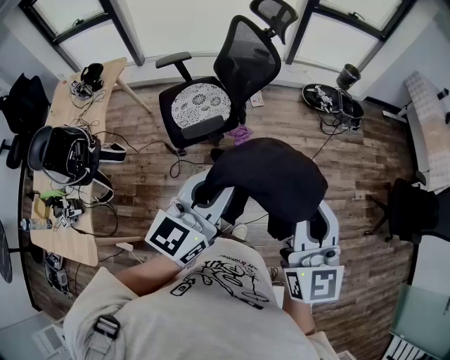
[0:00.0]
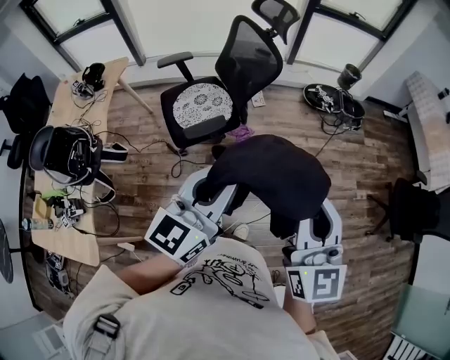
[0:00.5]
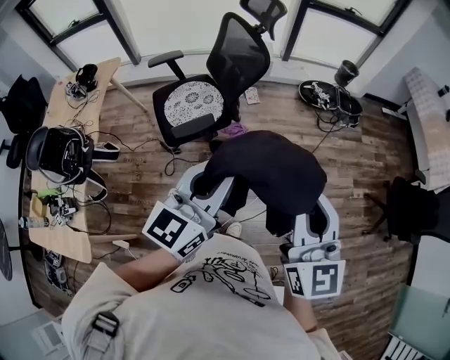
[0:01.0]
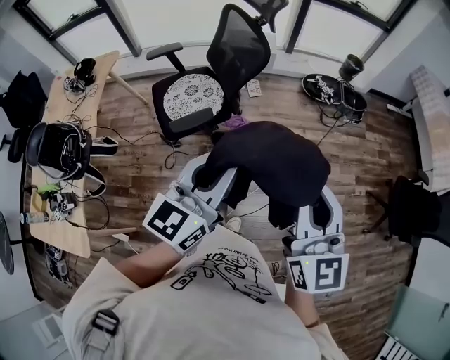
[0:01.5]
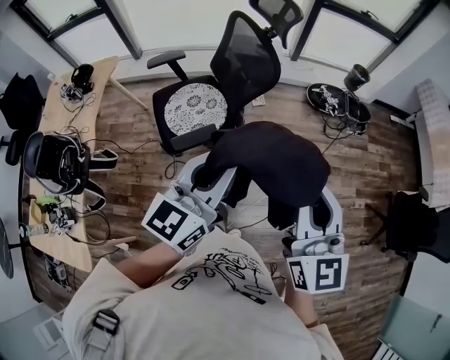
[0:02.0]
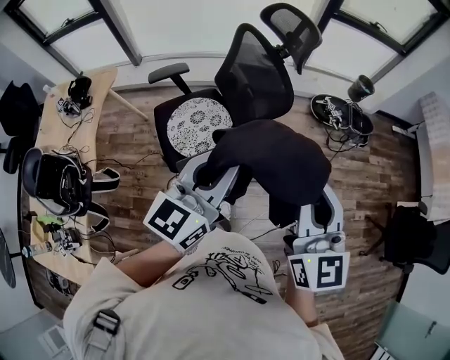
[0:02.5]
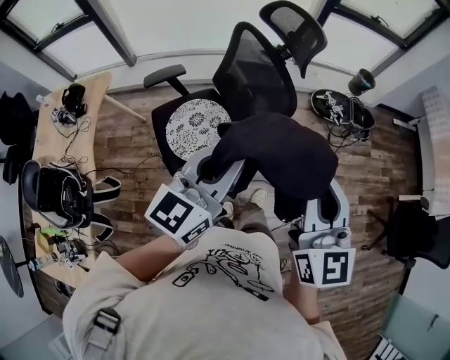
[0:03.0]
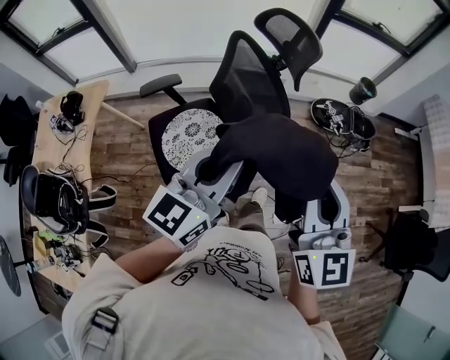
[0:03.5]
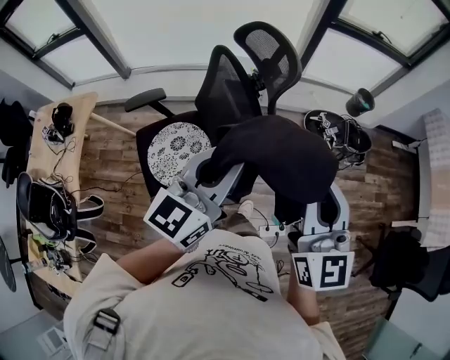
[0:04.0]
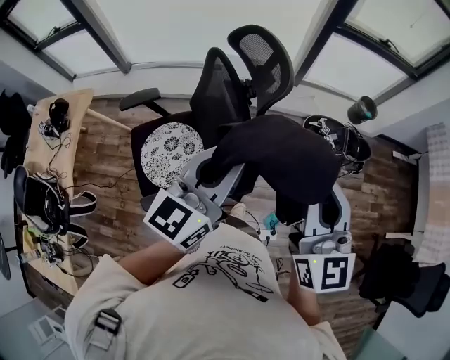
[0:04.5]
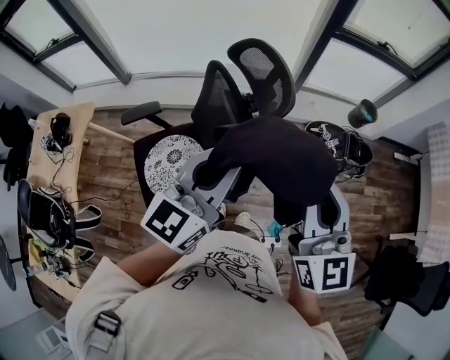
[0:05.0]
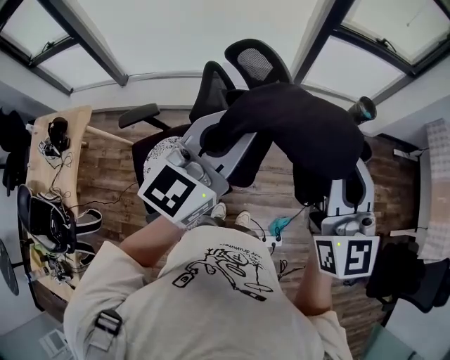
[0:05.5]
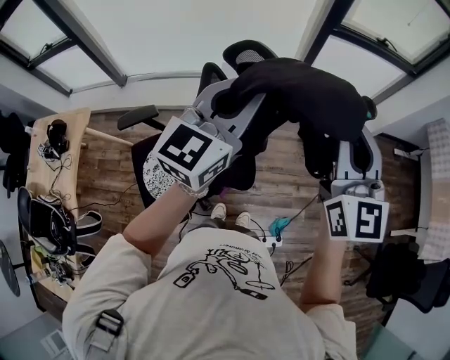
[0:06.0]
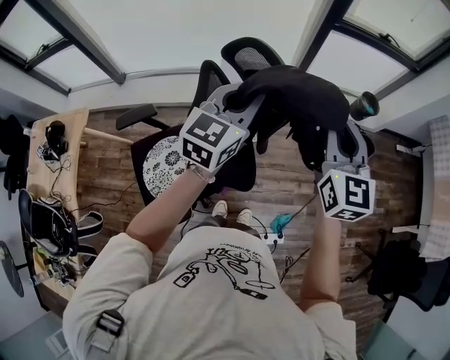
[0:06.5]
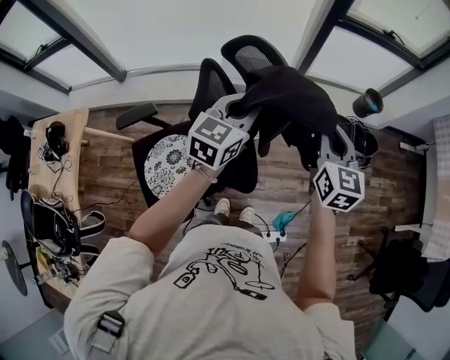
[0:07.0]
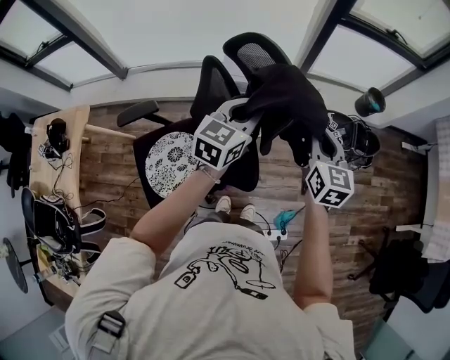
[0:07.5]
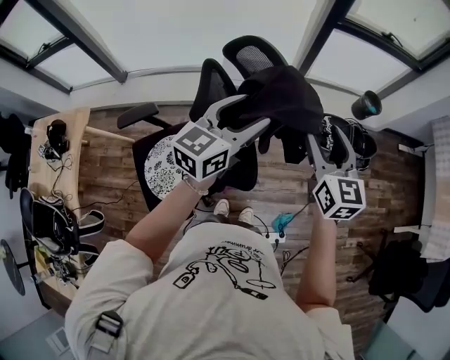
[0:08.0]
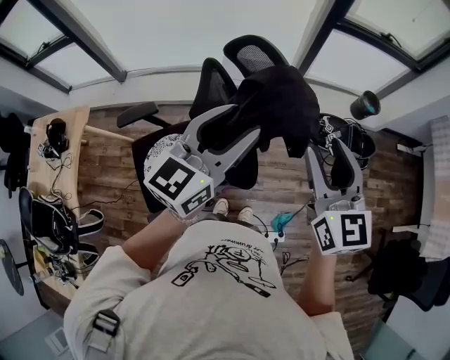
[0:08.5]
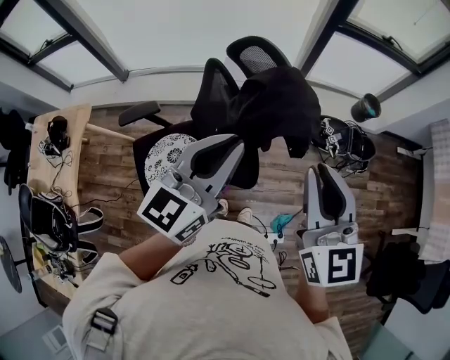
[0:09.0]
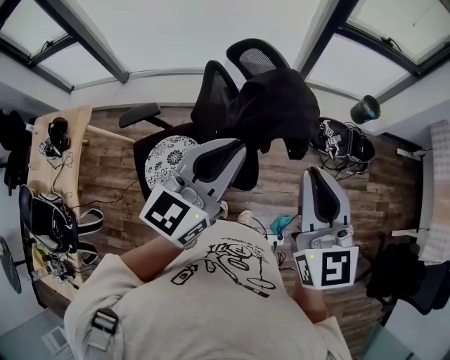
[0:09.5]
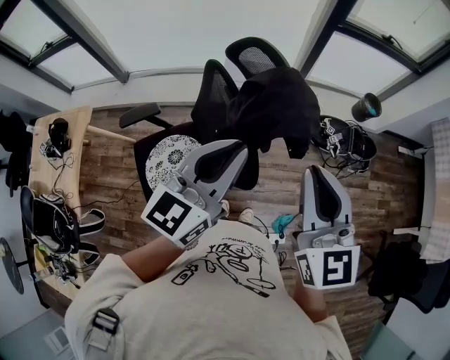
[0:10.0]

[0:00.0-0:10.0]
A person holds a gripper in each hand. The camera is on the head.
0:00.0 to 0:02.0: The two grippers go some 15 cm forward.
0:02.0 to 0:04.0: Both grippers travel together forward, about 35 cm.
0:04.0 to 0:06.0: Both grippers travel together forward, some 20 cm.
0:06.0 to 0:08.0: Both grippers move downward, approximately 15 cm. The left gripper opens its fingers, while the right gripper swivels approximately 20 degrees, and opens.
0:08.0 to 0:10.0: Both grippers move backward and upward, roughly 15 cm. The left gripper closes up. The right gripper closes up.

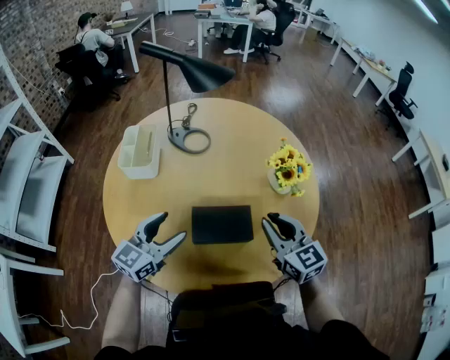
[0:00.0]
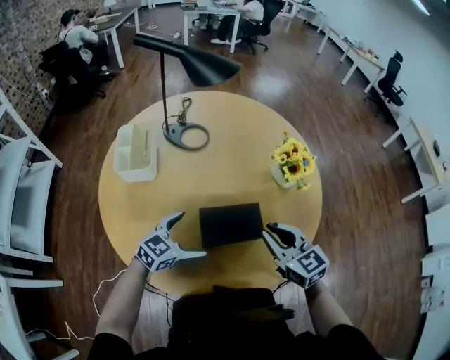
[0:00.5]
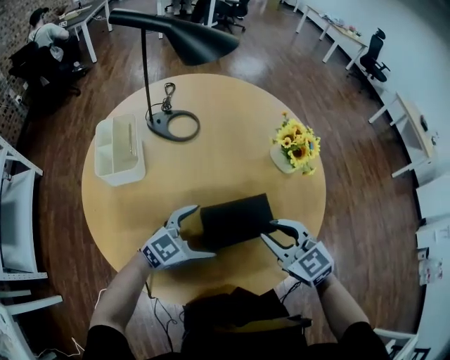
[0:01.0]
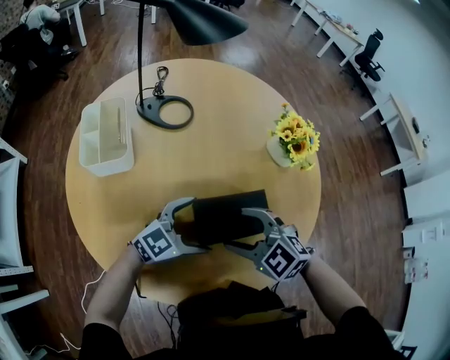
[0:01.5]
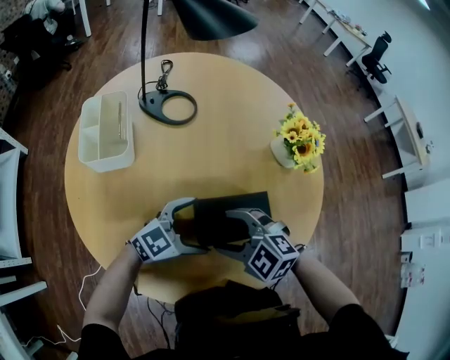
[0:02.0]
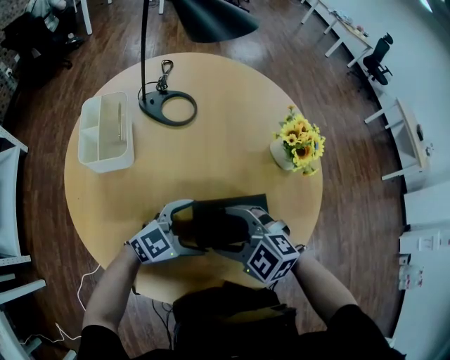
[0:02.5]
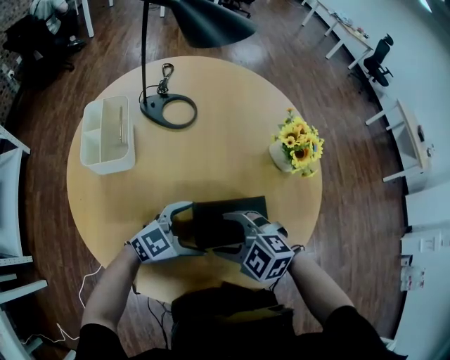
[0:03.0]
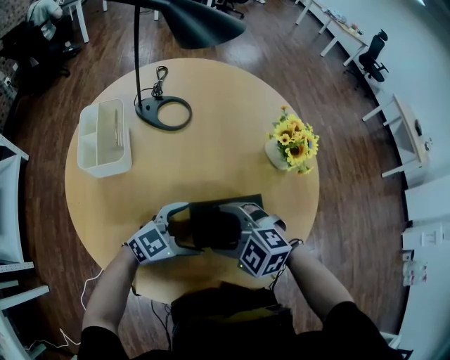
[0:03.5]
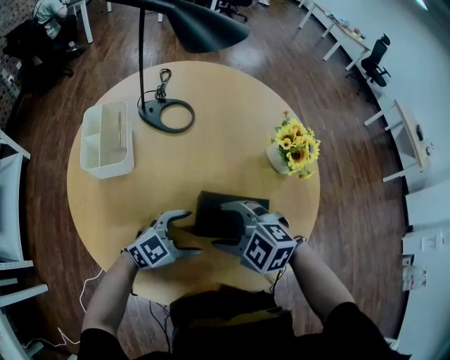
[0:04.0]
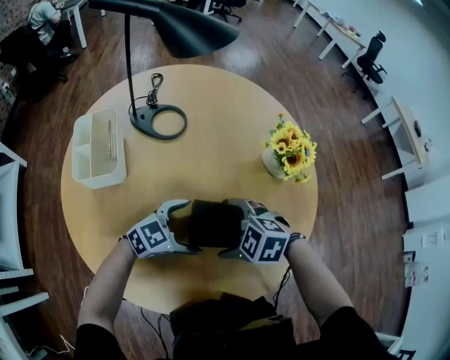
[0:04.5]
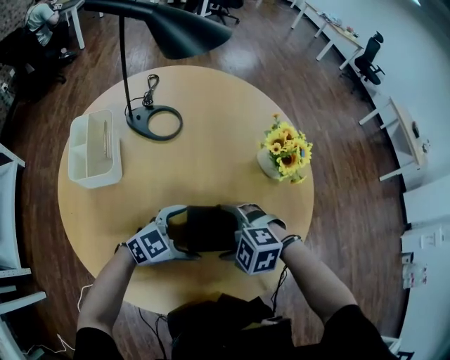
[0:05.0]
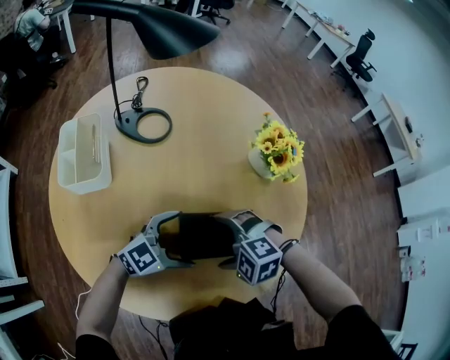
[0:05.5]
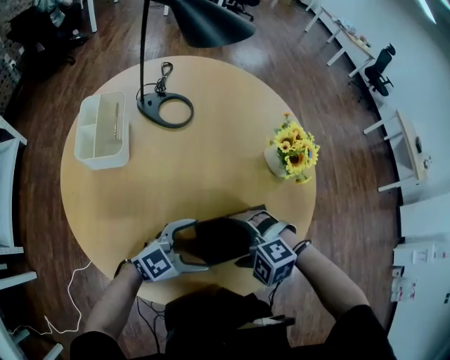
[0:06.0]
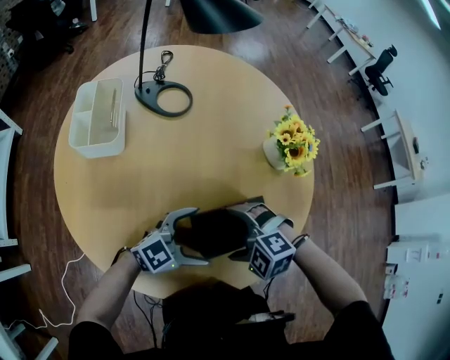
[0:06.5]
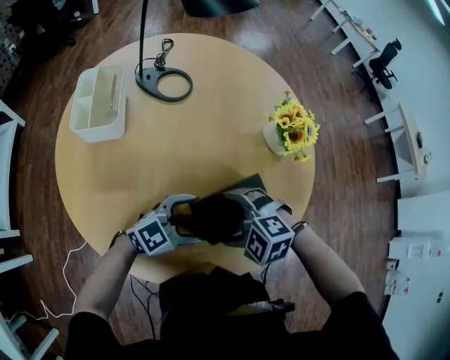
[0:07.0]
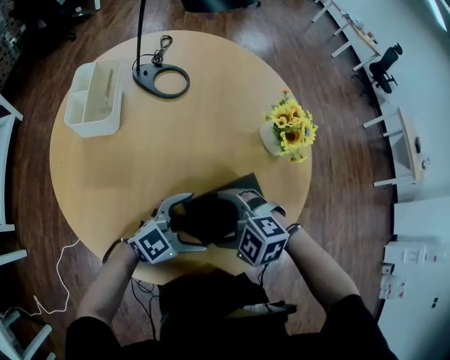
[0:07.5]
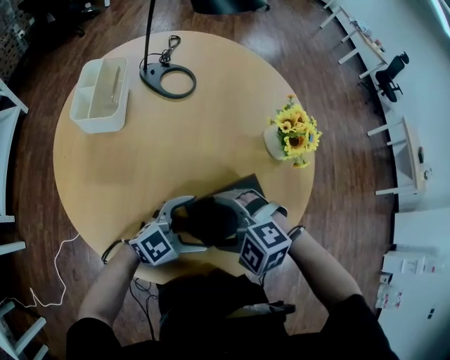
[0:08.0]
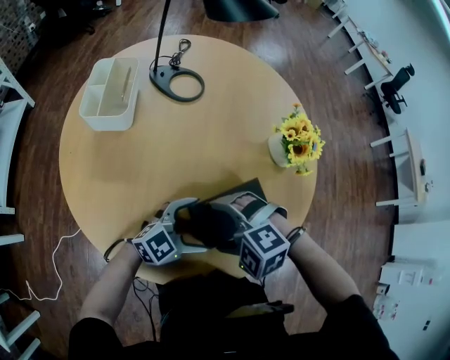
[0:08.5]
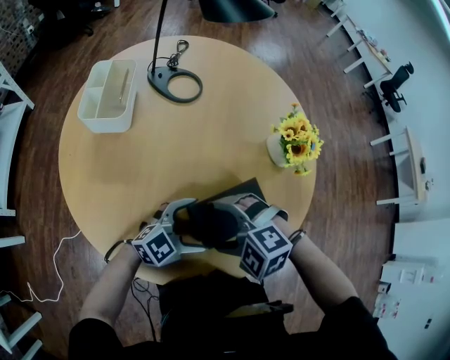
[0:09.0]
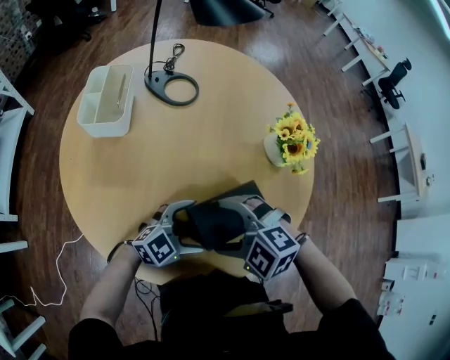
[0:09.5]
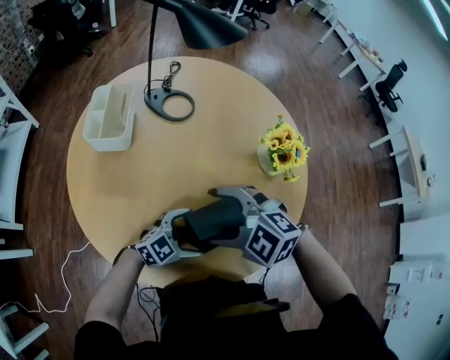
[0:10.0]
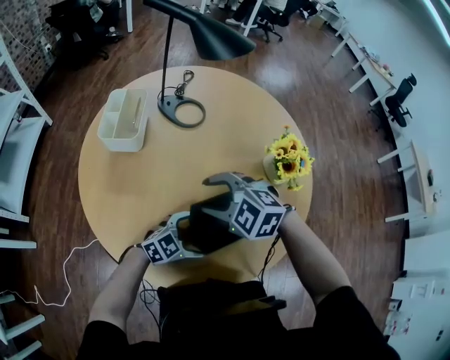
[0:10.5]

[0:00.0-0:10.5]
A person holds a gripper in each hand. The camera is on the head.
0:00.0 to 0:02.0: The left gripper travels downward by about 15 cm, changes its angle by some 40 degrees, and opens up. Meanwhile the right gripper shifts by some 20 cm, tips its fingers downward by some 30 degrees, and opens up.
0:04.0 to 0:06.5: The left gripper ends up approximately 5 cm from where it was; the right gripper moves roughly 10 cm, rotates roughly 20 degrees, and opens.
0:06.5 to 0:08.5: The grippers make only small movements.
0:08.5 to 0:10.5: The right gripper changes place by about 15 cm, rotates about 20 degrees, and closes.

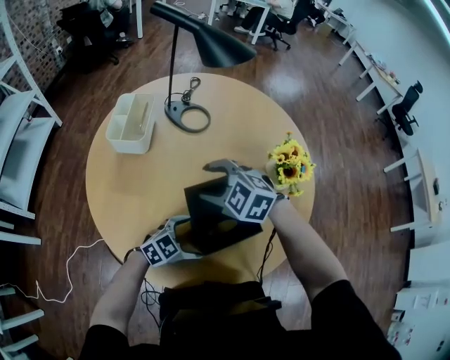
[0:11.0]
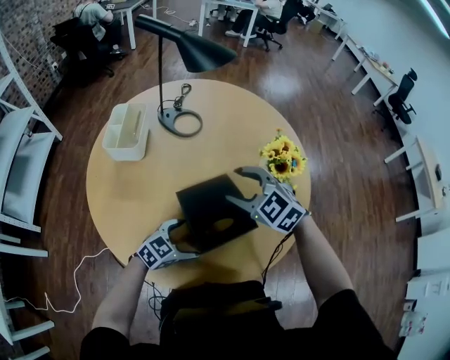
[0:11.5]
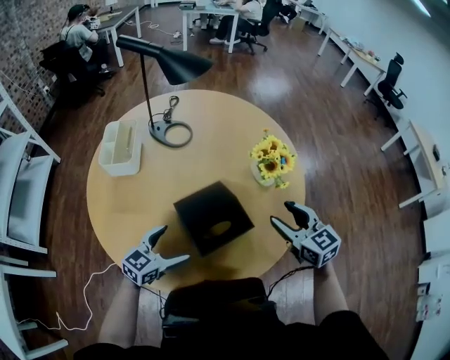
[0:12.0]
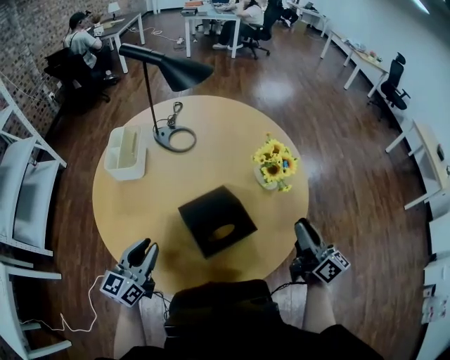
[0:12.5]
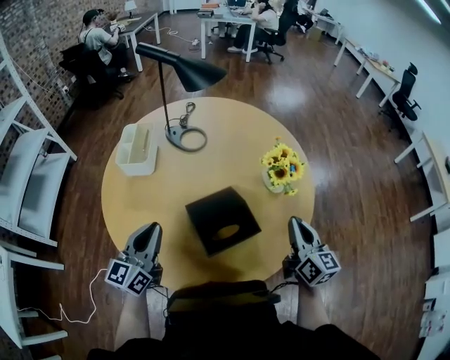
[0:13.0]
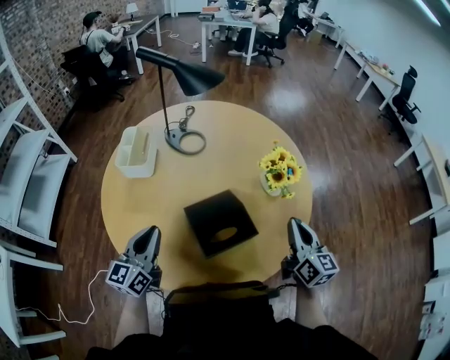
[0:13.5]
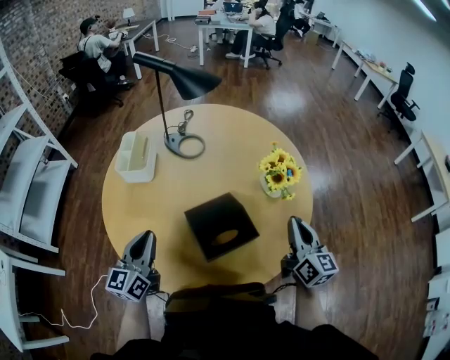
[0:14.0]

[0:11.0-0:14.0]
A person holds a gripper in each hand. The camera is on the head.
0:11.0 to 0:12.5: The left gripper ends up approximately 20 cm from where it was, rotates approximately 50 degrees, and closes. Meanwhile the right gripper shifts by some 35 cm, and angles its fingers upward, by roughly 50 degrees.

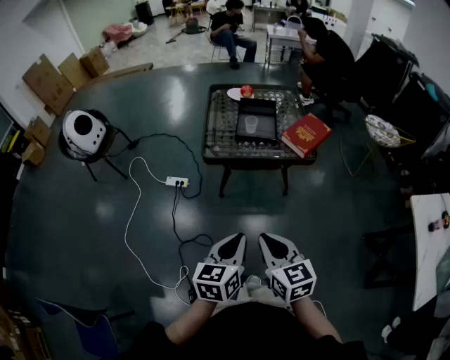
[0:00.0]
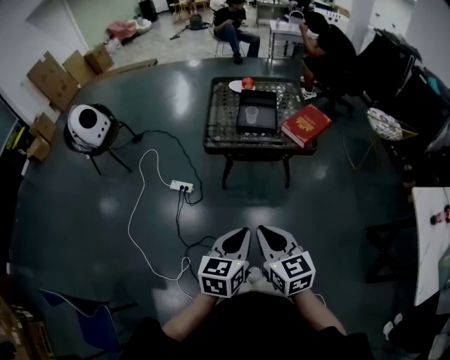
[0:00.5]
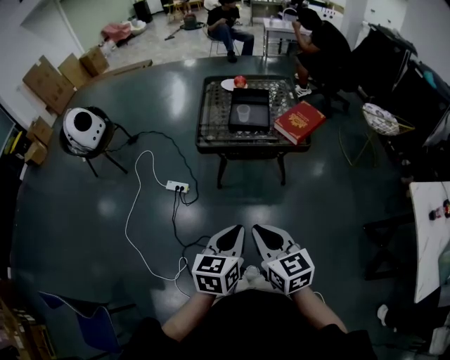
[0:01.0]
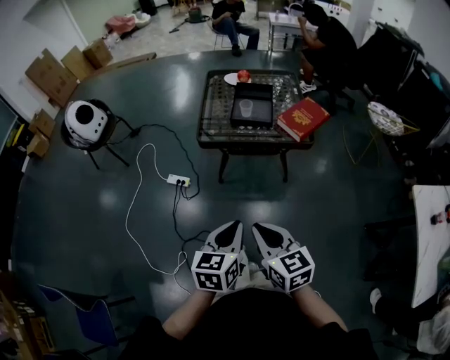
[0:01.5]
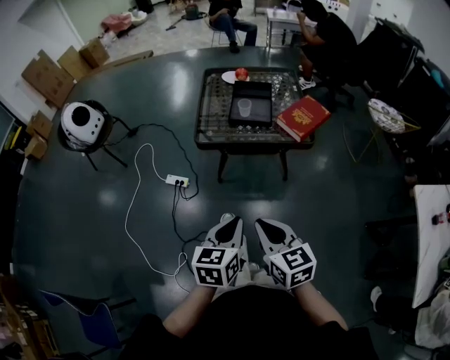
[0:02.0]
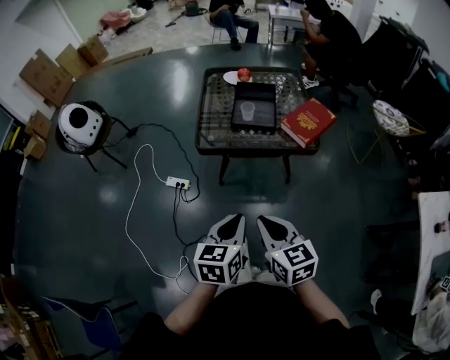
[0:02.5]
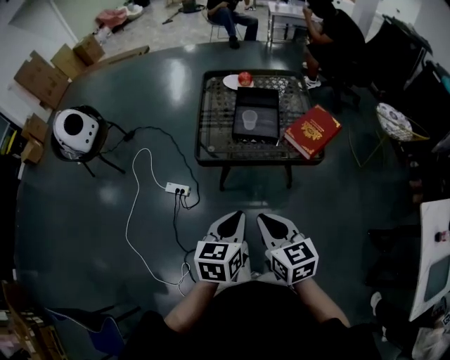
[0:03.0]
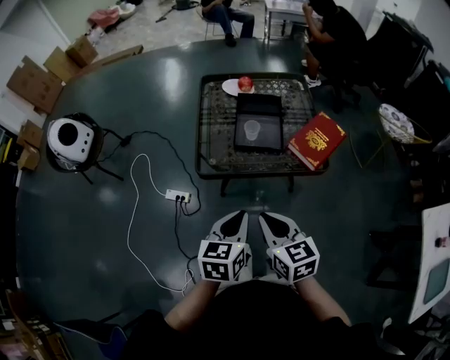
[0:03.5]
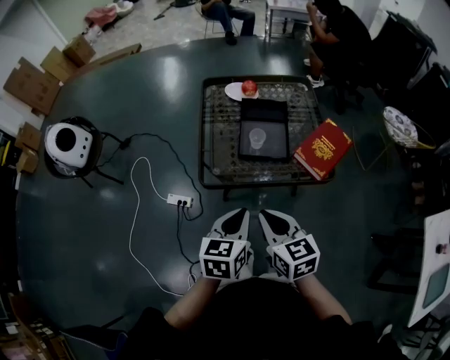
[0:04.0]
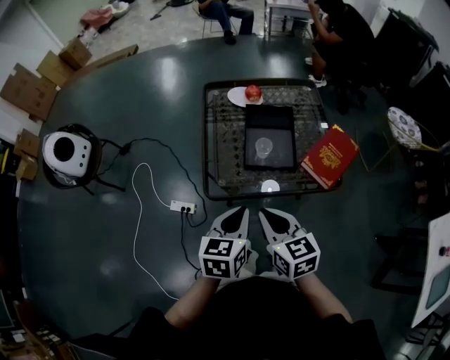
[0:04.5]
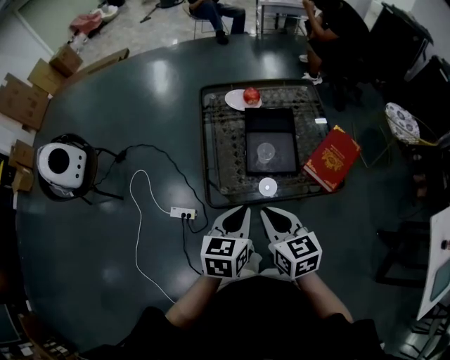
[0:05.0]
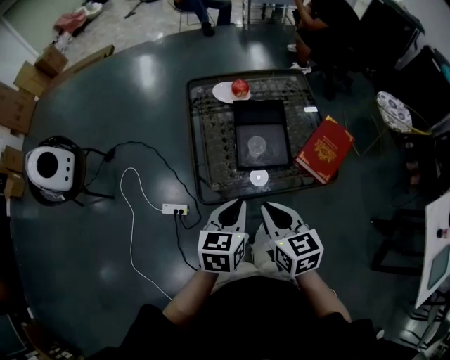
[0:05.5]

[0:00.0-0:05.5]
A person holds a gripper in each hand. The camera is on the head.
0:00.0 to 0:02.0: The left gripper ends up approximately 5 cm from where it was.
0:02.0 to 0:03.5: Both grippers travel together forward, roughly 20 cm.
0:03.5 to 0:05.5: The grippers both shift forward by roughly 15 cm.
